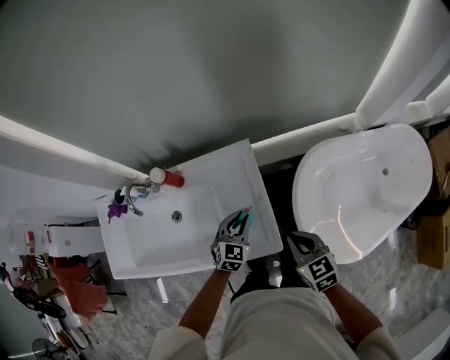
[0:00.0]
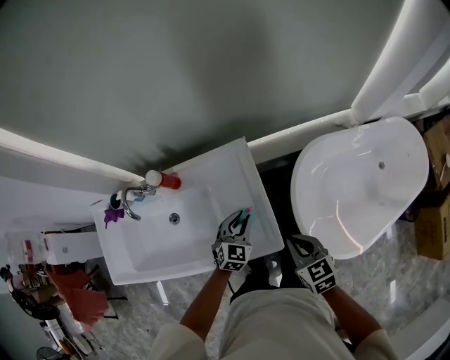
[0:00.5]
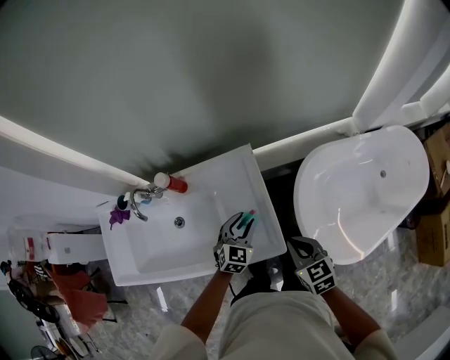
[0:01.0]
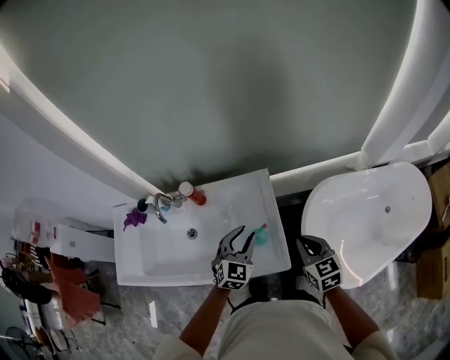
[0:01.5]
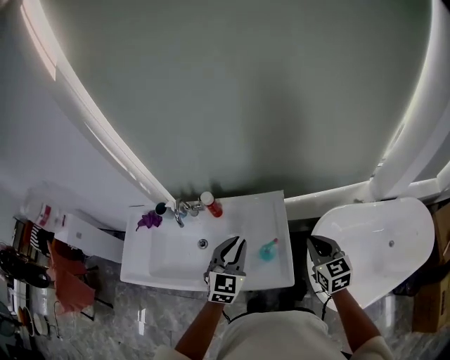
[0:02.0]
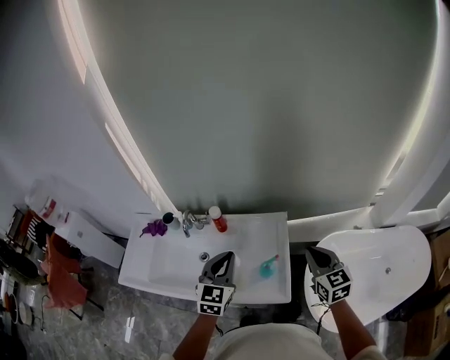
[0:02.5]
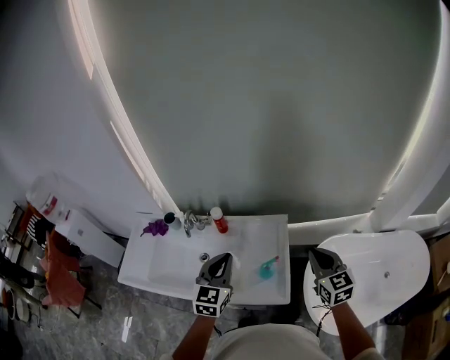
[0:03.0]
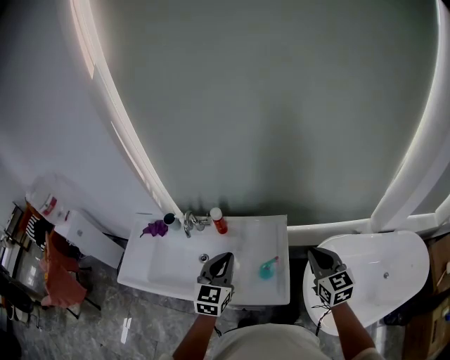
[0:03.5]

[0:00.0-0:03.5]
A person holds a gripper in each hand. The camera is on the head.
0:00.0 to 0:02.0: The right gripper shifts roughly 15 cm upward and forward, while the left gripper shifts about 25 cm upward, and swivels approximately 20 degrees.
0:02.0 to 0:03.5: The left gripper moves to the left, some 5 cm. The right gripper heads upward, covering roughly 5 cm.

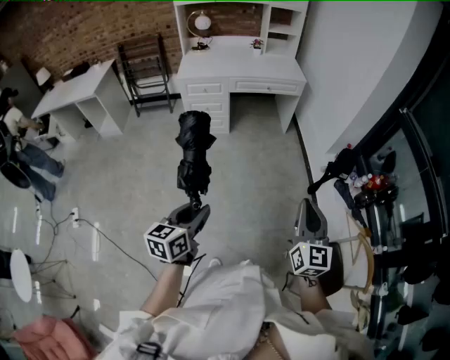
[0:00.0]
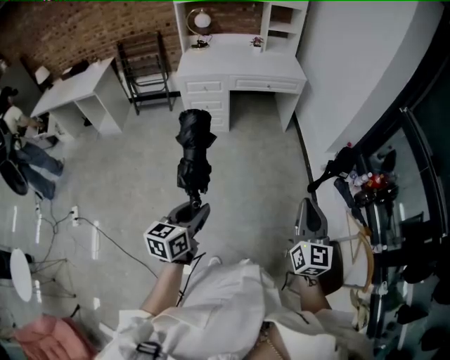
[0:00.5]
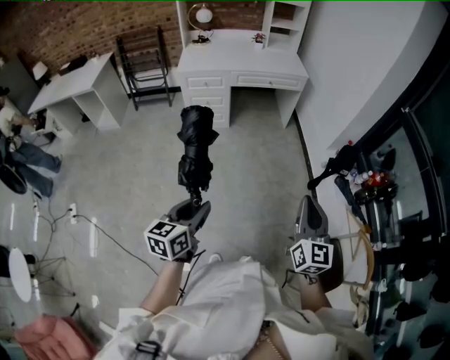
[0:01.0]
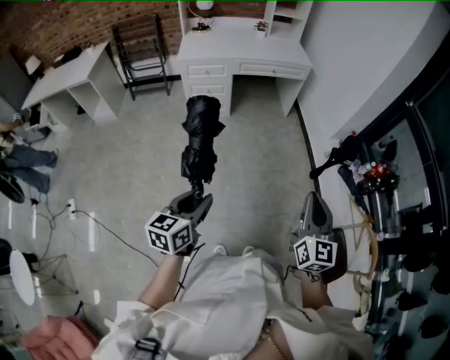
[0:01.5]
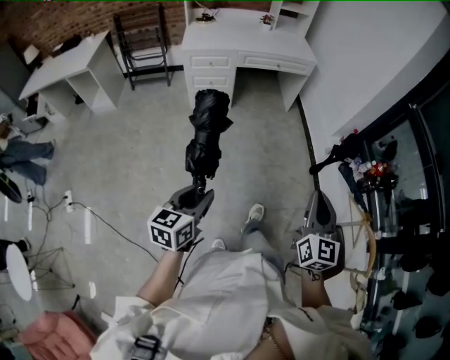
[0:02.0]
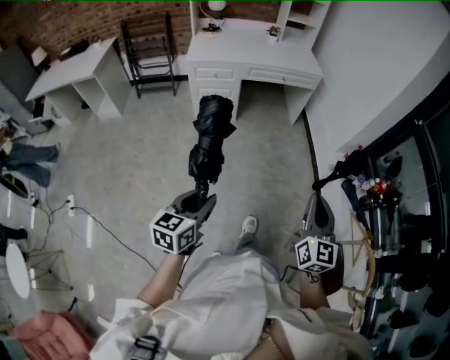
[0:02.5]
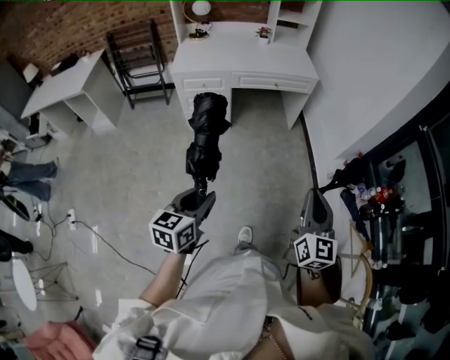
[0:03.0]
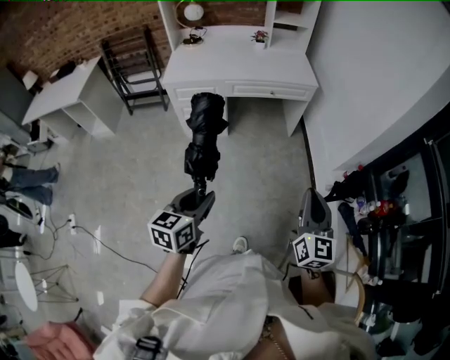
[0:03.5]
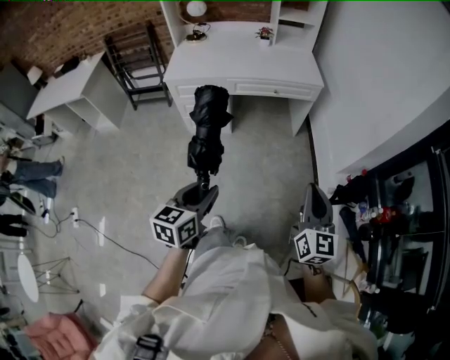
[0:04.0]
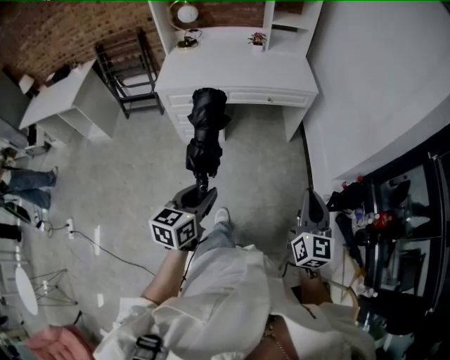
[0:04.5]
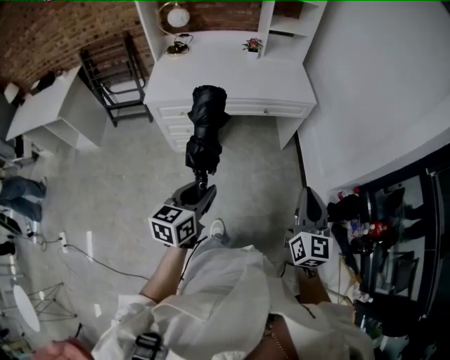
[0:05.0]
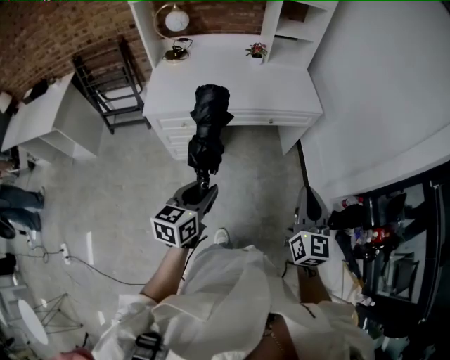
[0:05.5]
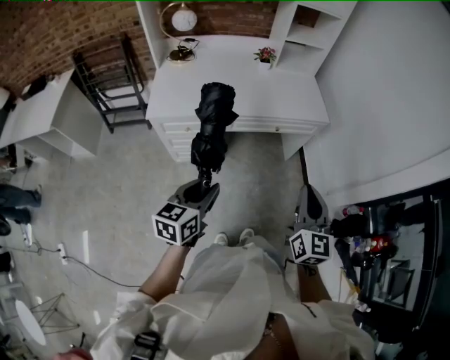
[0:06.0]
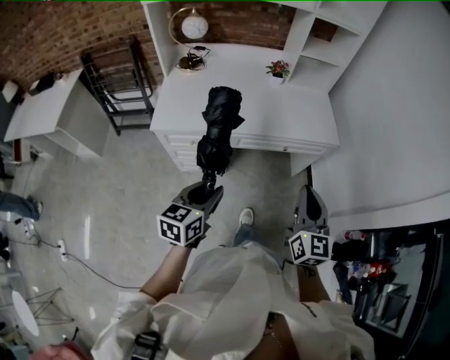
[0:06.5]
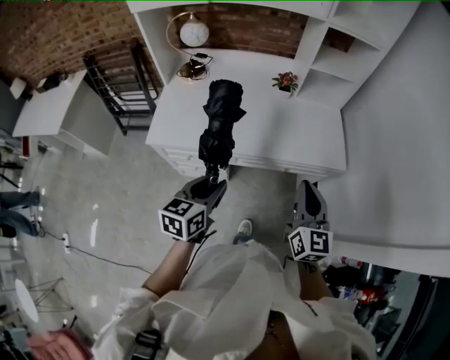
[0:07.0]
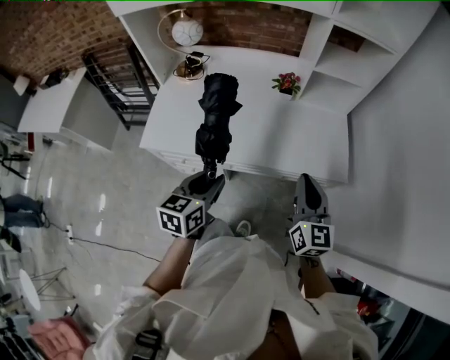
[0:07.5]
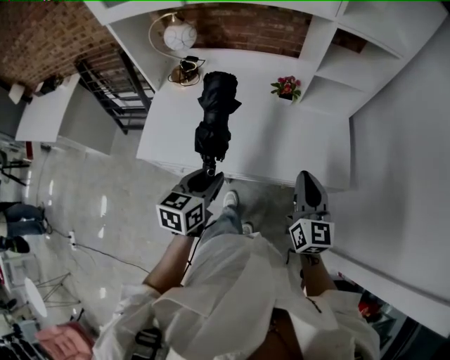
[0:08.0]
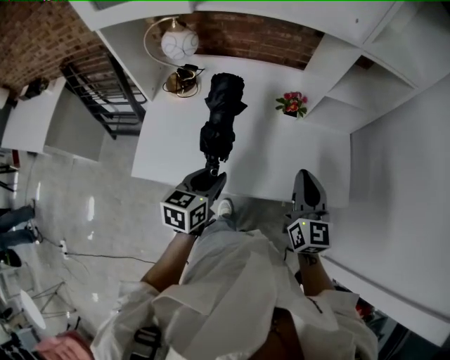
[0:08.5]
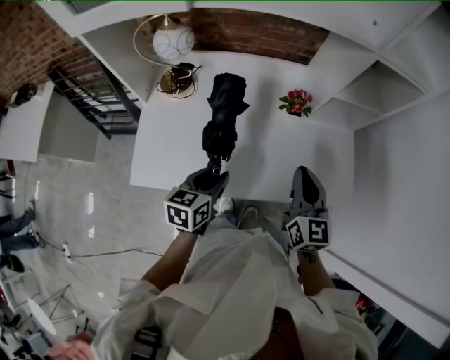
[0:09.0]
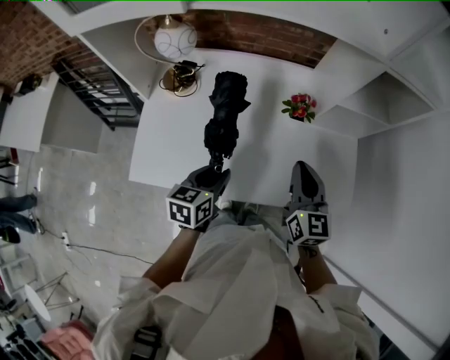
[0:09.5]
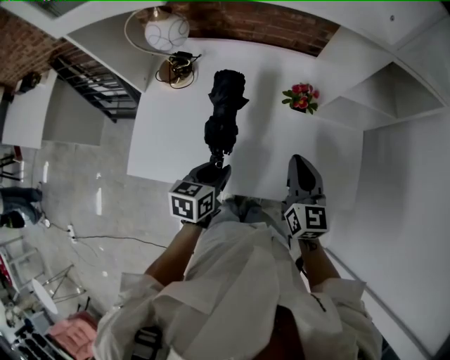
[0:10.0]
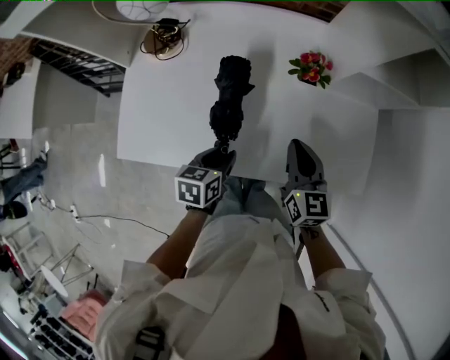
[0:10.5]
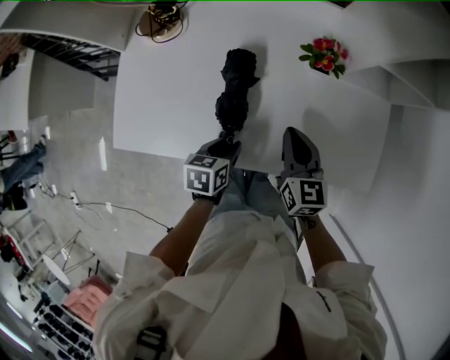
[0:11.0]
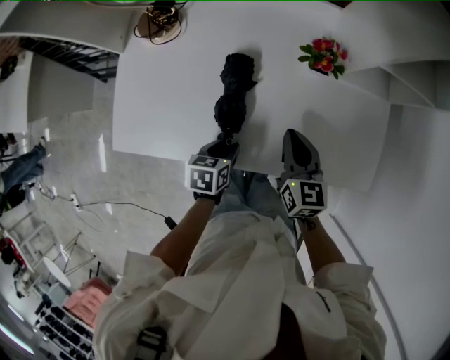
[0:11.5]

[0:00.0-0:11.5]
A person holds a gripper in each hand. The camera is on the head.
0:00.0 to 0:02.0: Both grippers travel together to the left, about 5 cm.
0:02.0 to 0:04.0: The two grippers go roughly 35 cm forward.
0:04.0 to 0:06.0: Both grippers move forward and to the left, about 35 cm.
0:06.0 to 0:07.5: Both grippers move forward, approximately 35 cm.
0:07.5 to 0:09.5: The right gripper moves forward and to the left, some 25 cm; the left gripper travels forward by some 20 cm.
0:09.5 to 0:11.5: Both grippers travel together downward, roughly 20 cm. The left gripper swivels some 20 degrees.

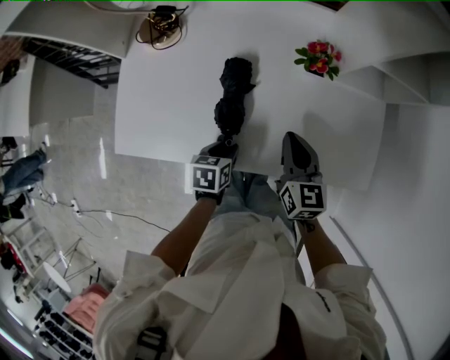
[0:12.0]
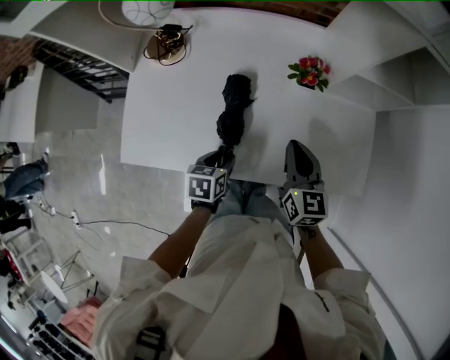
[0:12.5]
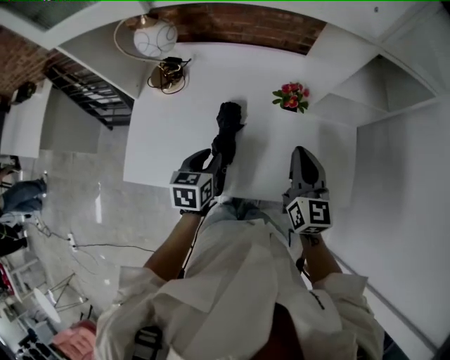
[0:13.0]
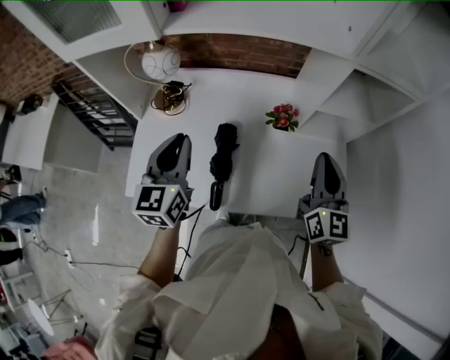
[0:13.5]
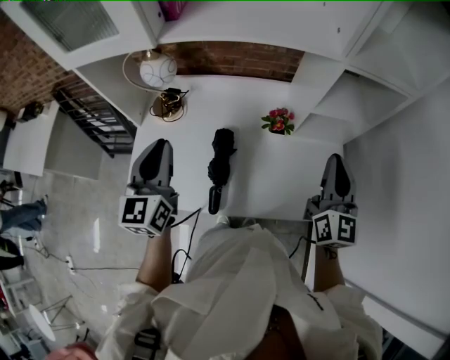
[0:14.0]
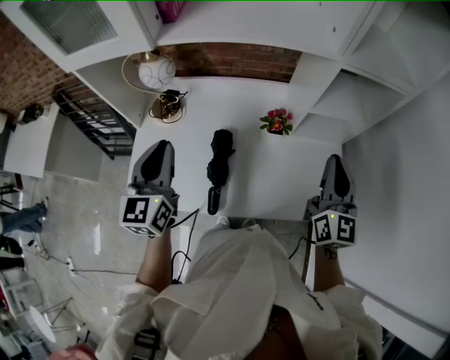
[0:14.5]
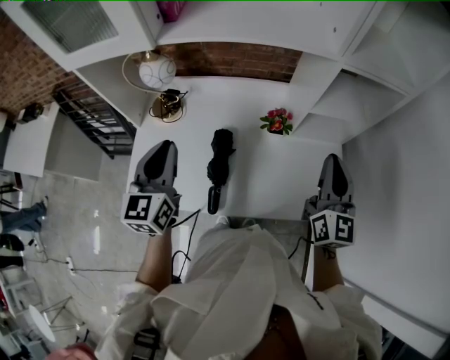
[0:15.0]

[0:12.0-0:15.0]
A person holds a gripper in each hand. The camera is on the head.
0:12.0 to 0:13.5: The right gripper shifts roughly 25 cm upward and to the right, and swivels roughly 30 degrees. The left gripper shifts about 35 cm upward, and tips its fingers upward by about 50 degrees.
0:13.5 to 0:15.0: The grippers move only a little.

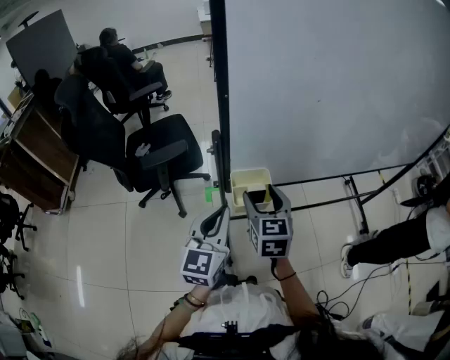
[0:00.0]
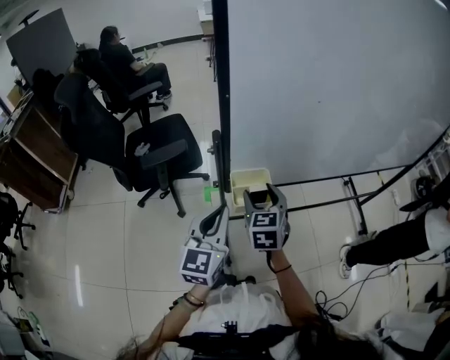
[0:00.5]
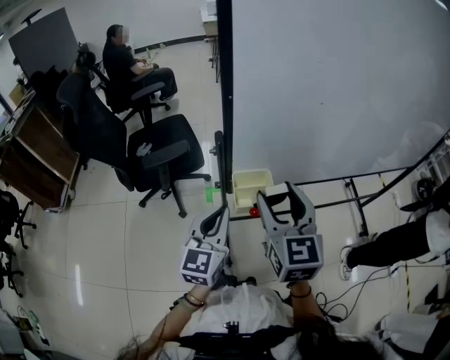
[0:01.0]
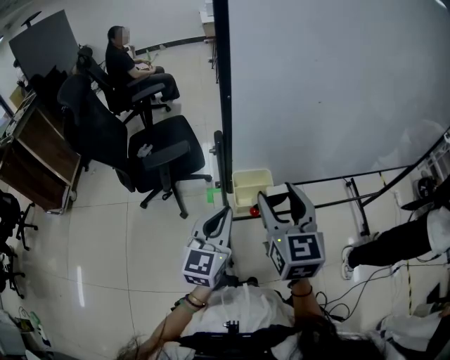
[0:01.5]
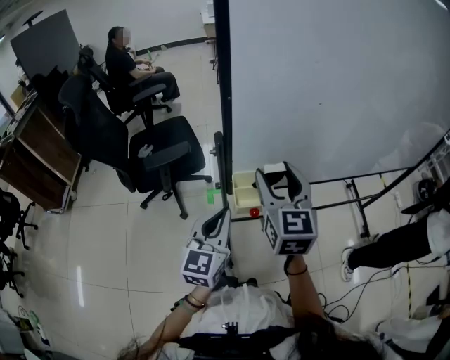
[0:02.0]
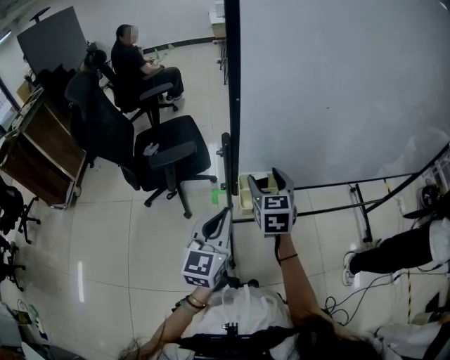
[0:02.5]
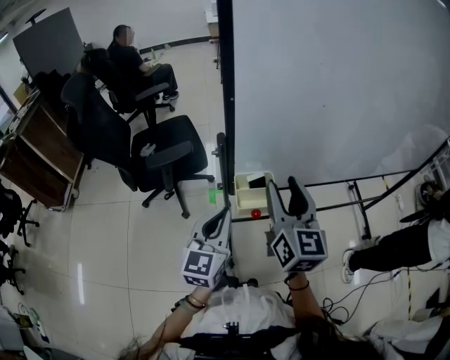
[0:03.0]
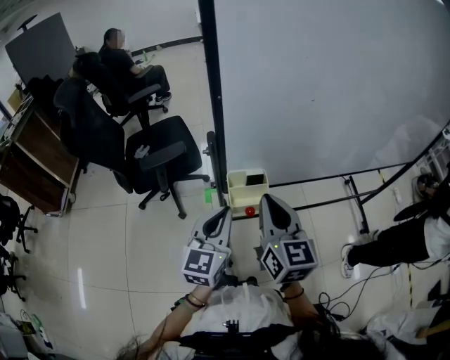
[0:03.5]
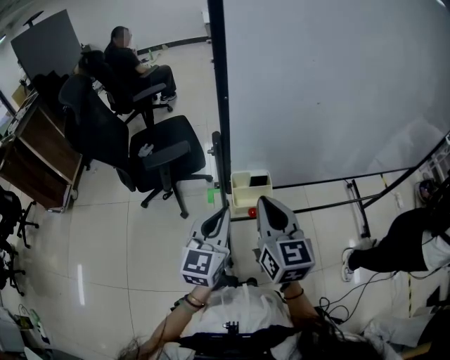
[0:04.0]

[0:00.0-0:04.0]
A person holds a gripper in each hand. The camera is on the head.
0:00.0 to 0:02.0: The right gripper is displaced upward by approximately 15 cm.
0:02.0 to 0:04.0: The right gripper moves backward, about 5 cm, and closes up.

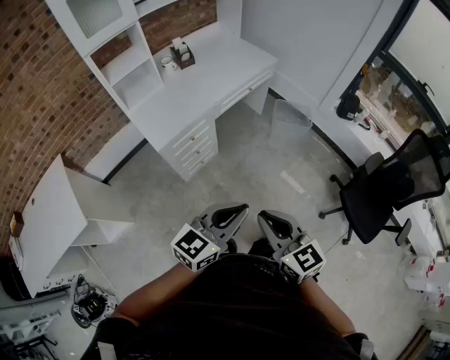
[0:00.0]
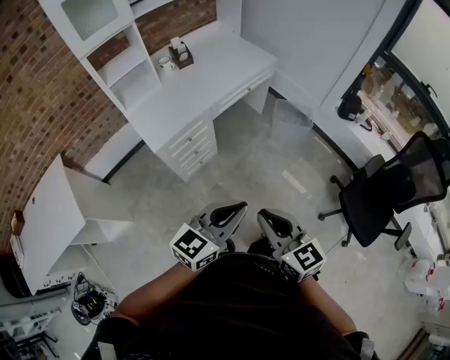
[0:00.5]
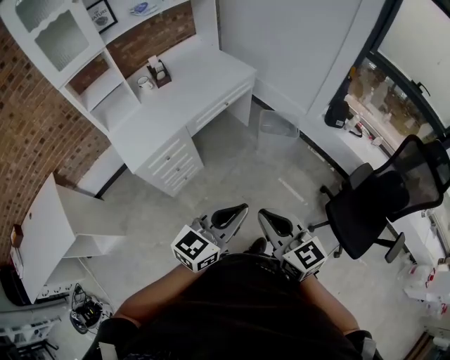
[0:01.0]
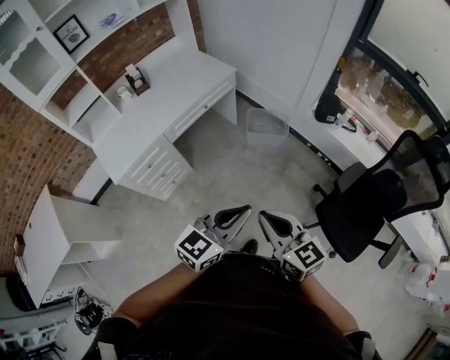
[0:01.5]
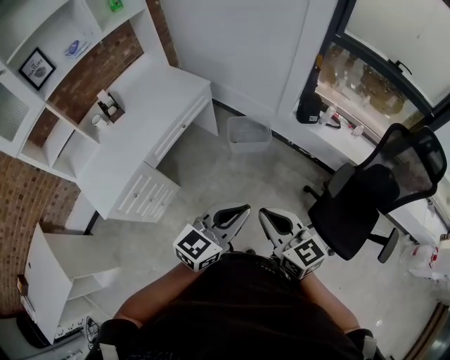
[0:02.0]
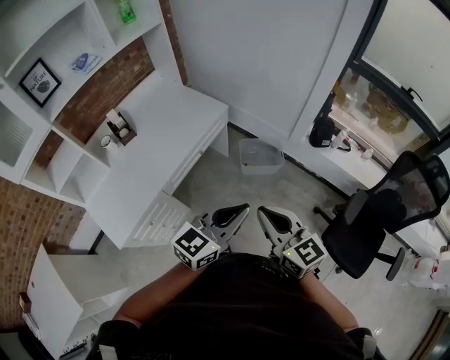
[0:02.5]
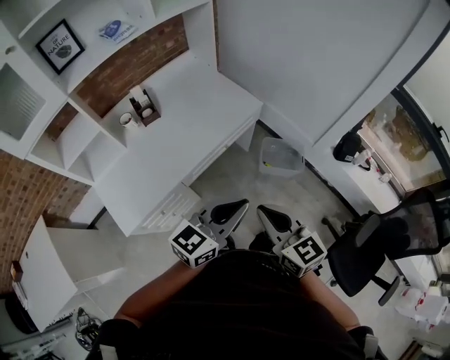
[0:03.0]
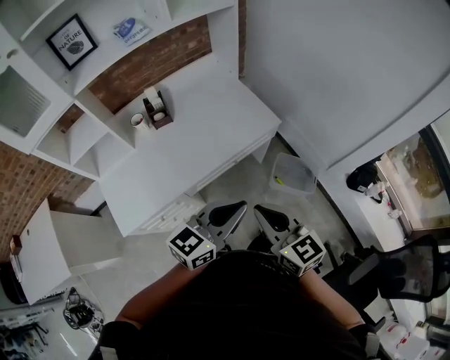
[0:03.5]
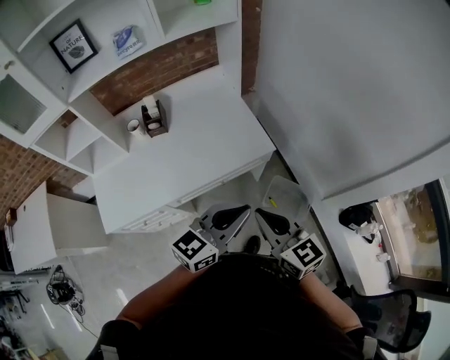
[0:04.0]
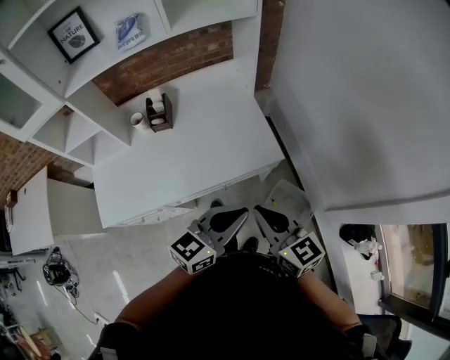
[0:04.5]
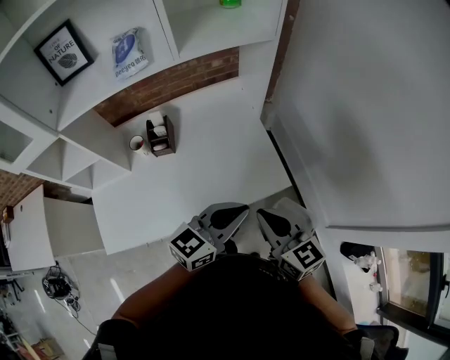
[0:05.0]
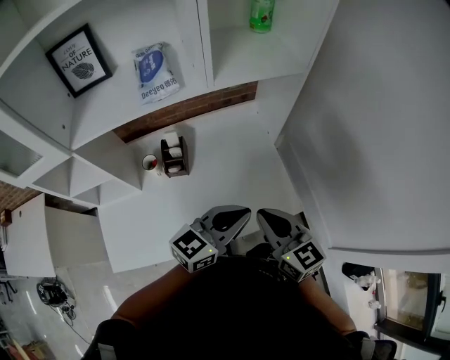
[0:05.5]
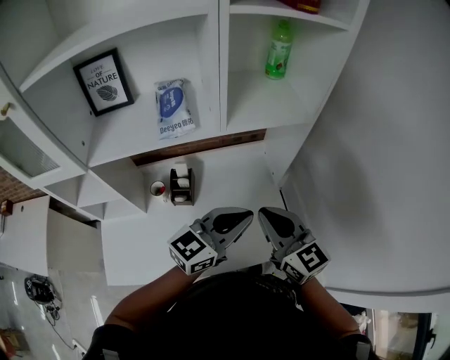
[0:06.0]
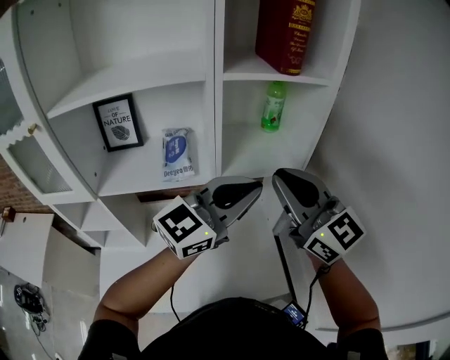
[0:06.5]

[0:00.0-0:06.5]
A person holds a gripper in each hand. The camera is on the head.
0:00.0 to 0:02.0: Both grippers travel together to the right and forward, approximately 40 cm.
0:02.0 to 0:04.5: Both grippers are carried roughly 50 cm. The right gripper rotates approximately 40 degrees. The left gripper rotates some 40 degrees.
0:04.5 to 0:06.5: Both grippers travel together forward and upward, approximately 50 cm. The right gripper swivels some 40 degrees. The left gripper swivels some 30 degrees.
